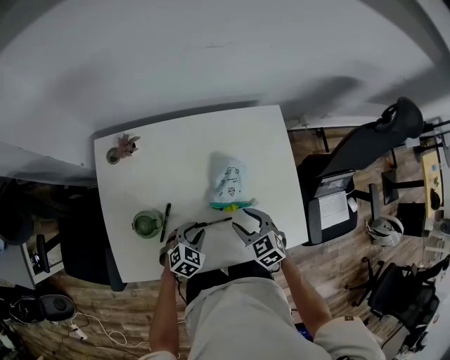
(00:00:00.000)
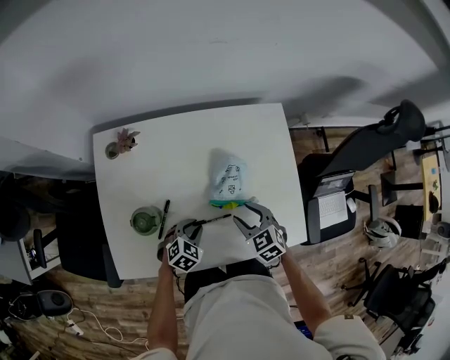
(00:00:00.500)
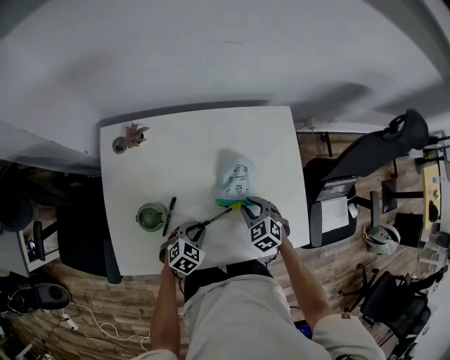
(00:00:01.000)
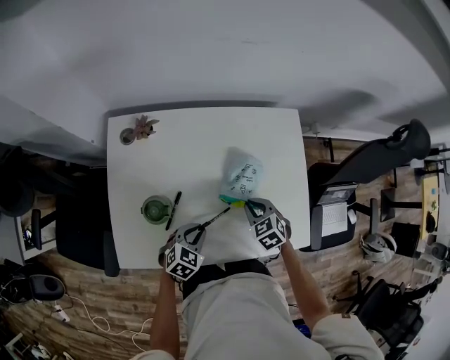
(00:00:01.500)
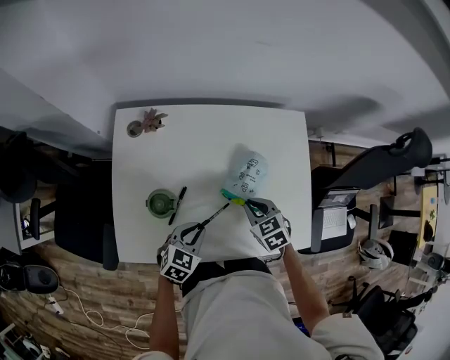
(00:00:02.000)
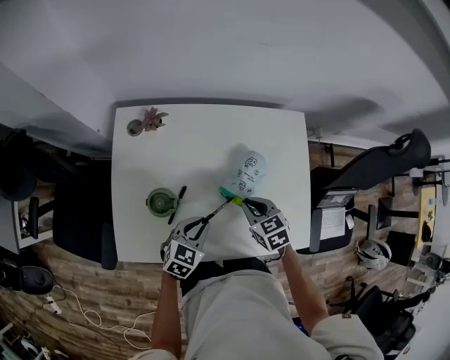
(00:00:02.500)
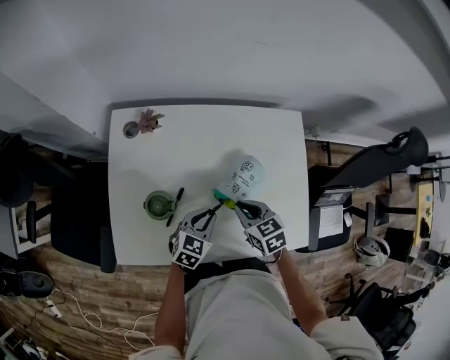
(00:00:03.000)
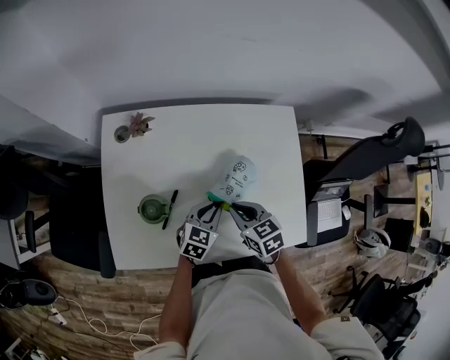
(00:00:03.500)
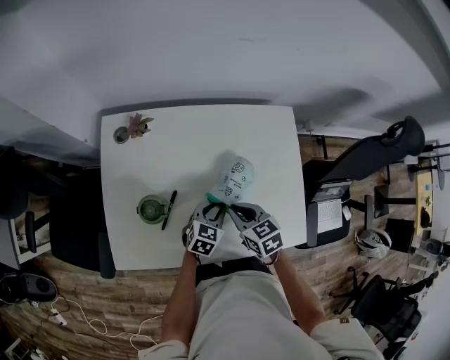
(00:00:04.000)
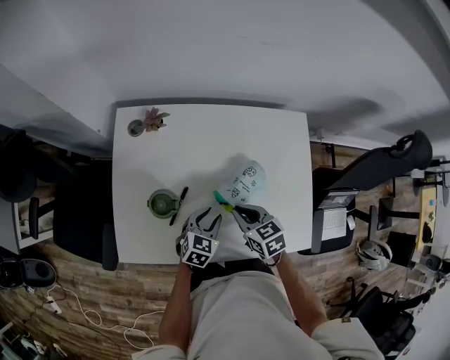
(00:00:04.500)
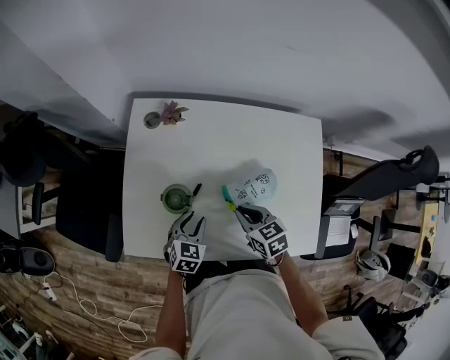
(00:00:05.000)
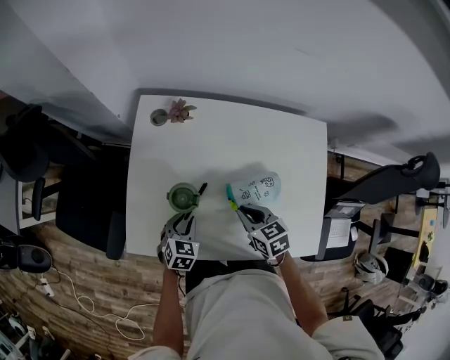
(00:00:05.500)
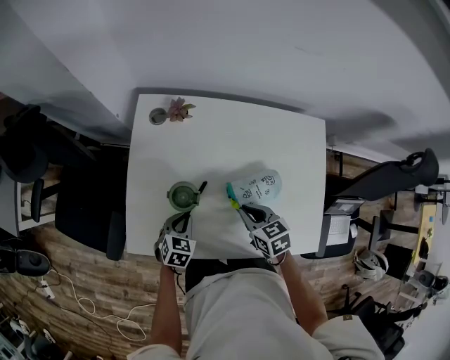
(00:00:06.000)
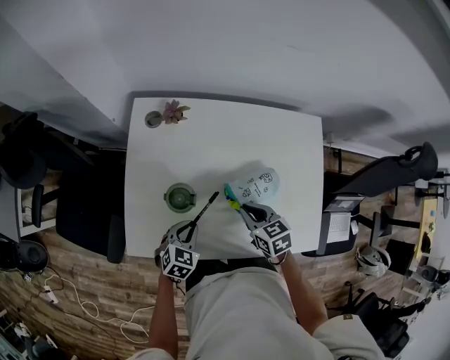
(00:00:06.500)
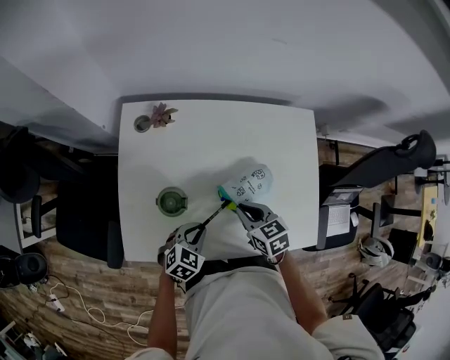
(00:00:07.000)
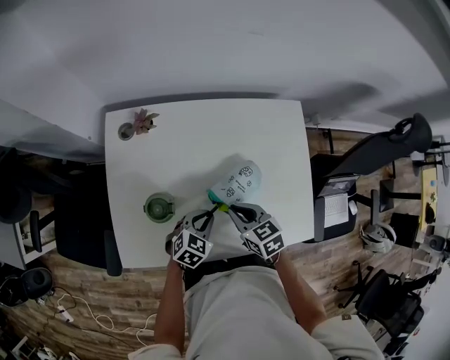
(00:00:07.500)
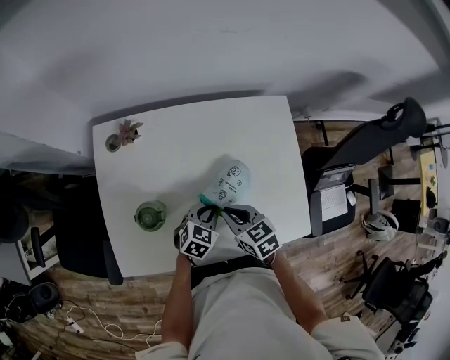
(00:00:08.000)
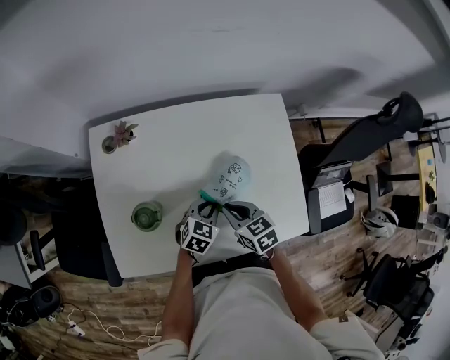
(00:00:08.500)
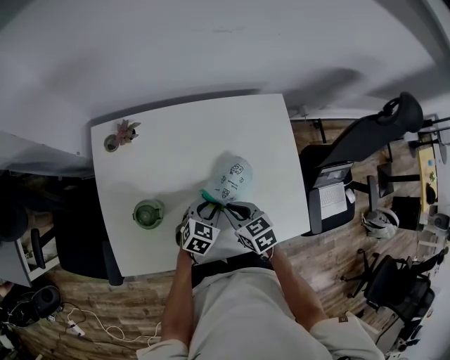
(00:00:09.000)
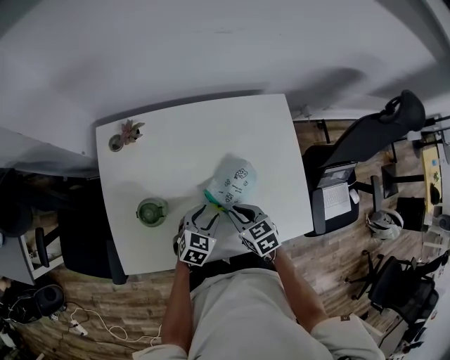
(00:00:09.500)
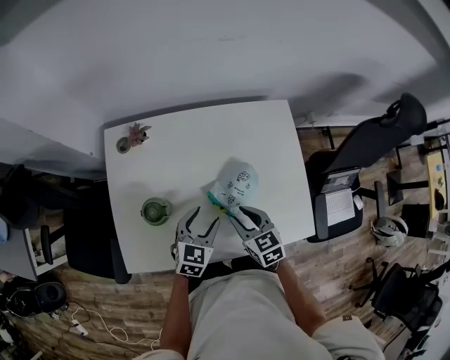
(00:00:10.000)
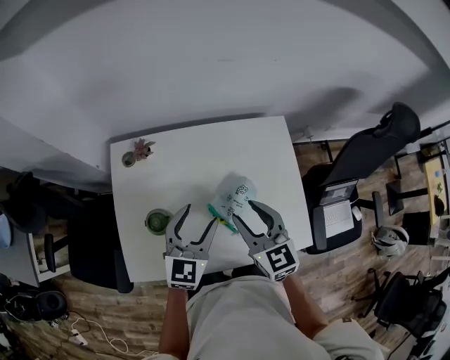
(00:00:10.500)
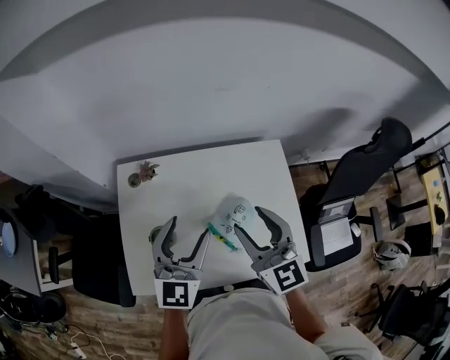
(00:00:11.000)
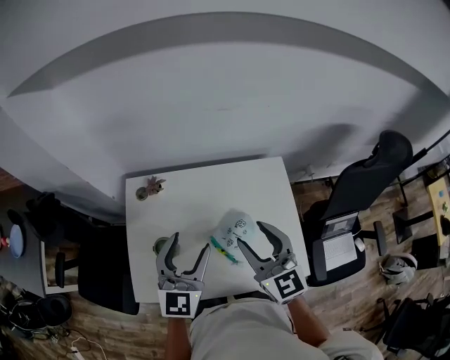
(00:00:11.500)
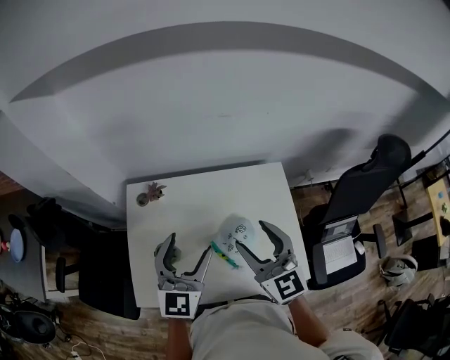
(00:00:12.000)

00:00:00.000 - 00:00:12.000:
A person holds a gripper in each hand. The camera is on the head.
00:00:00.000 - 00:00:02.000: The right gripper closes. Meanwhile the left gripper travels upward by about 5 cm.
00:00:02.000 - 00:00:04.000: The left gripper heads to the right and forward, covering some 10 cm.
00:00:04.000 - 00:00:06.000: The right gripper shifts some 5 cm to the left. The left gripper goes about 20 cm to the left, and swivels about 20 degrees.
00:00:06.000 - 00:00:08.000: The left gripper heads to the right, covering approximately 20 cm, and changes its angle by about 30 degrees.
00:00:08.000 - 00:00:10.000: The left gripper heads upward, covering some 5 cm, and opens its fingers.
00:00:10.000 - 00:00:12.000: The two grippers go about 30 cm upward. The right gripper tilts its fingers about 40 degrees upward, and opens its fingers, while the left gripper tips its fingers upward by some 30 degrees.

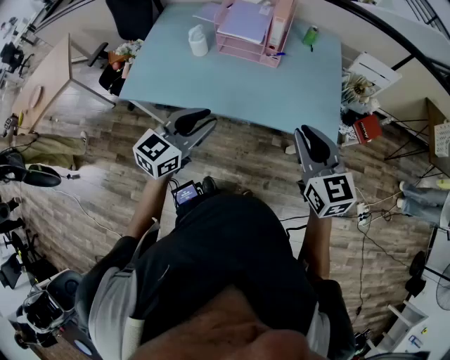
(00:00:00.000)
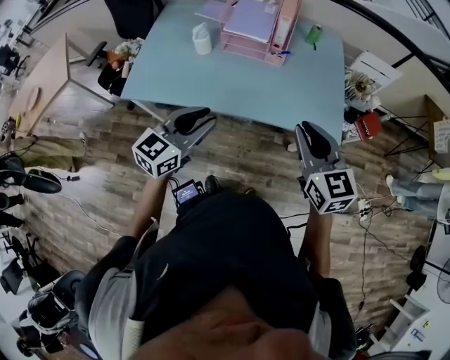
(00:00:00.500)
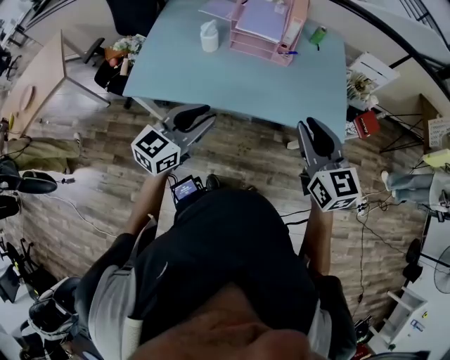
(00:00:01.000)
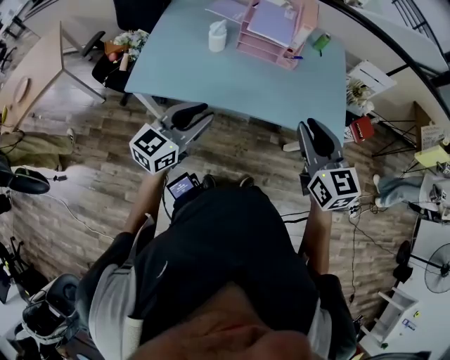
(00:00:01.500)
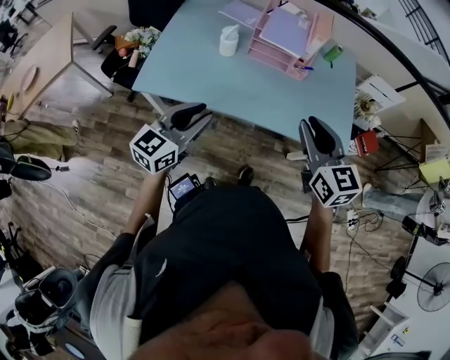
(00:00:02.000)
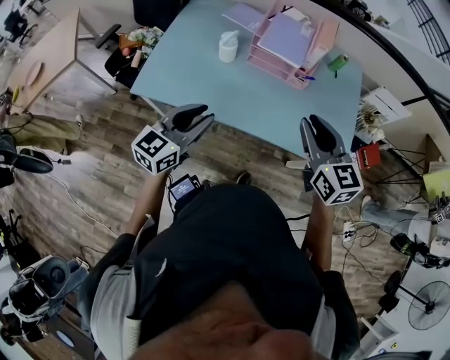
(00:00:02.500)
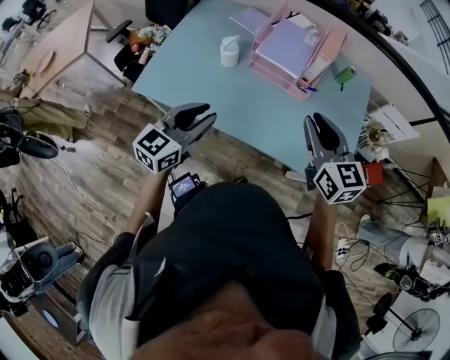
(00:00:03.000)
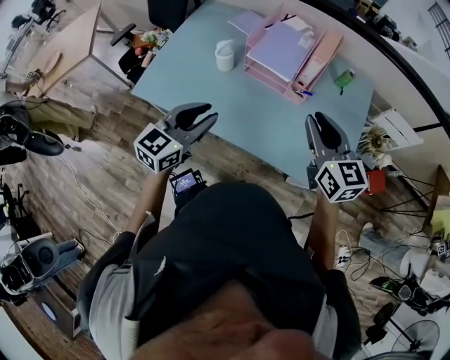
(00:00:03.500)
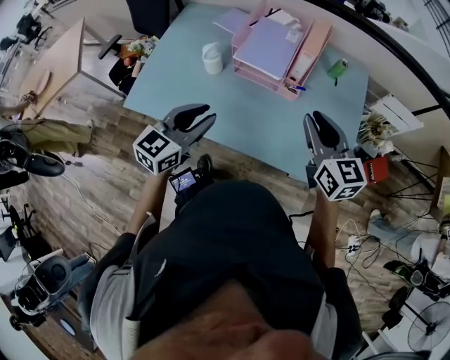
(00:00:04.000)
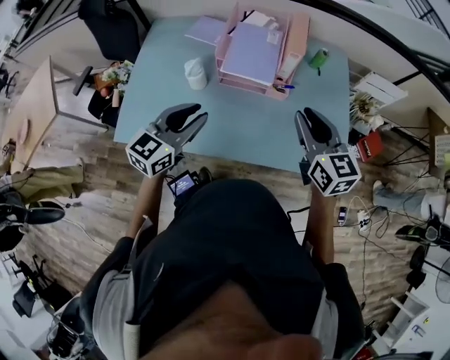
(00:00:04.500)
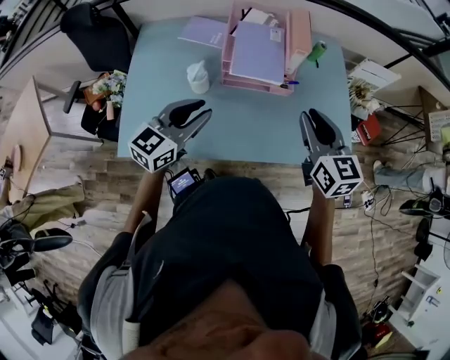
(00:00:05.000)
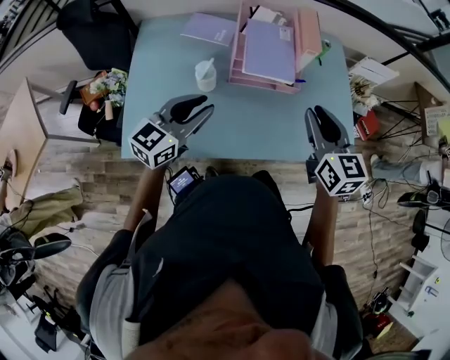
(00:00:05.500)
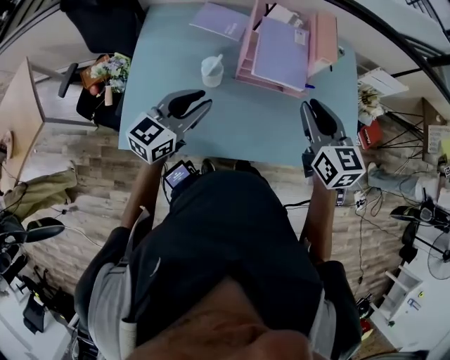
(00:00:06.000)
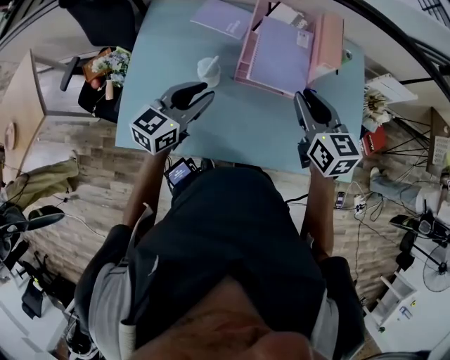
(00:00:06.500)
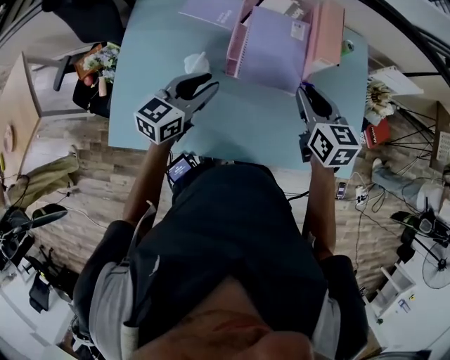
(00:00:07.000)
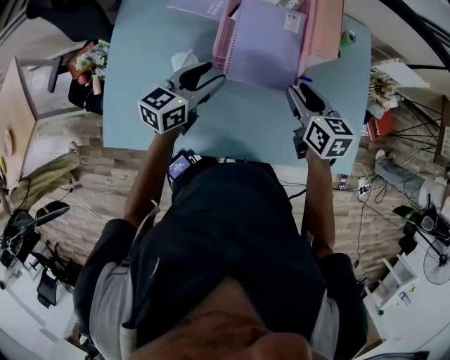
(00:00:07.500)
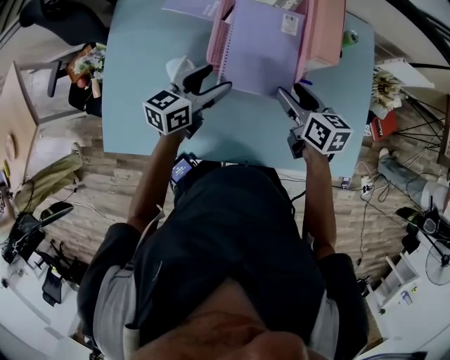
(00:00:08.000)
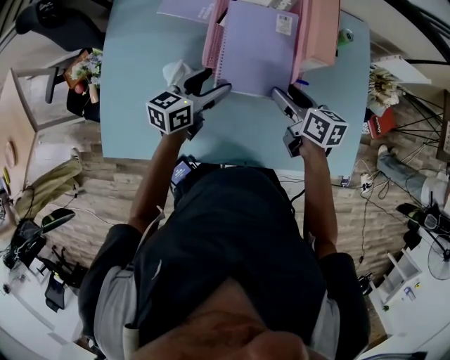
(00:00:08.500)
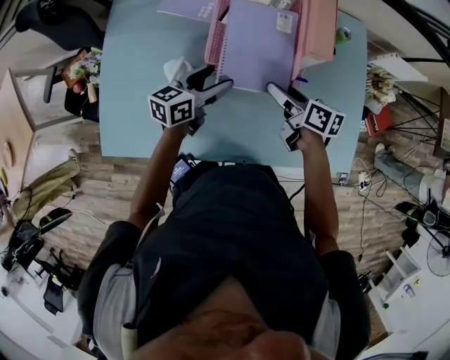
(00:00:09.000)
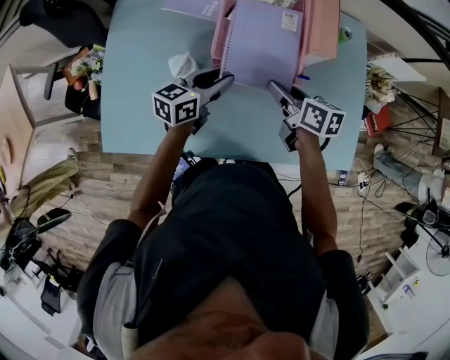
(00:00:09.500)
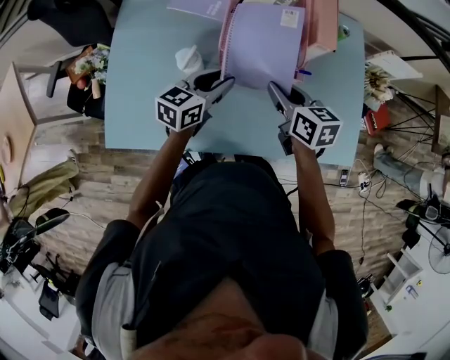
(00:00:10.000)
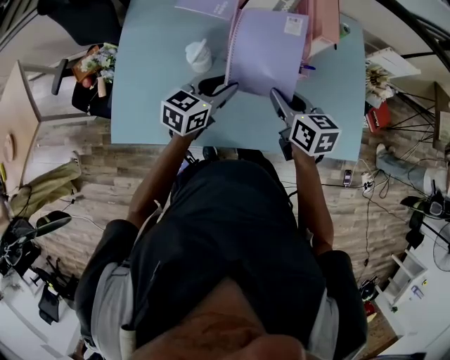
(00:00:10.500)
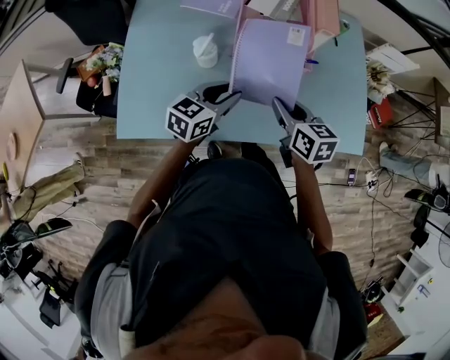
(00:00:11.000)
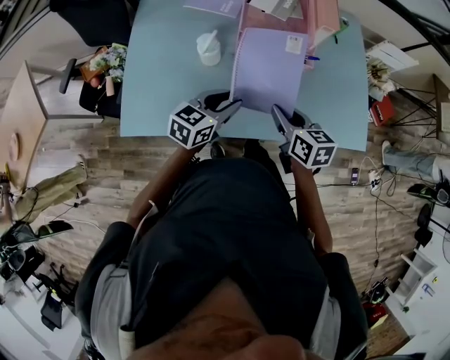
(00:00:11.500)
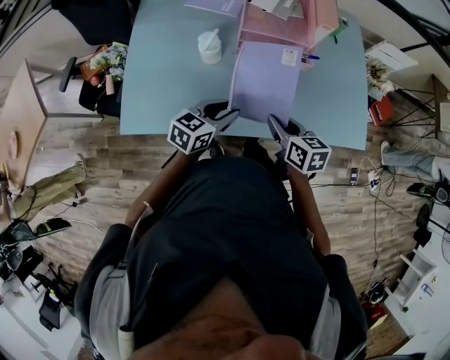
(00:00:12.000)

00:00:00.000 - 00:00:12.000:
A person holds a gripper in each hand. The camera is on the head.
00:00:00.000 - 00:00:02.000: Both grippers travel together to the left, approximately 15 cm.
00:00:02.000 - 00:00:04.000: Both grippers move forward and to the right, about 20 cm.
00:00:04.000 - 00:00:06.000: The right gripper is displaced to the left by approximately 15 cm. Meanwhile the left gripper travels to the left and forward by roughly 20 cm.
00:00:06.000 - 00:00:08.000: The right gripper travels downward and forward by roughly 25 cm, rotates approximately 30 degrees, and opens up. The left gripper heads forward, downward and to the right, covering roughly 25 cm, changes its angle by approximately 20 degrees, and opens its fingers.
00:00:08.000 - 00:00:10.000: The right gripper shifts some 10 cm to the left and backward, and closes its fingers; the left gripper closes its fingers.
00:00:10.000 - 00:00:12.000: The two grippers go some 20 cm backward.

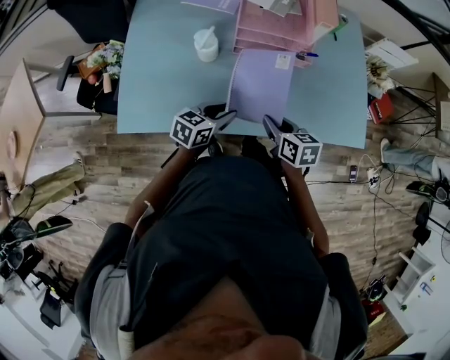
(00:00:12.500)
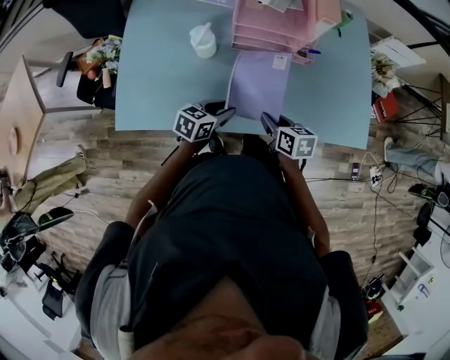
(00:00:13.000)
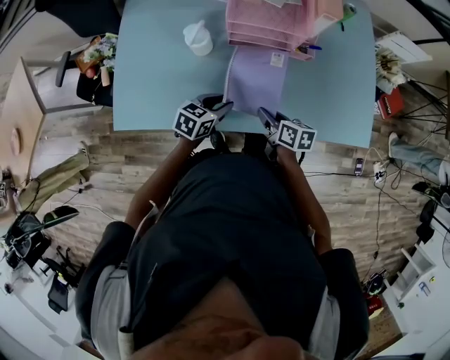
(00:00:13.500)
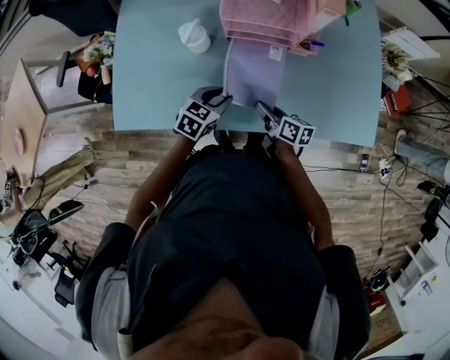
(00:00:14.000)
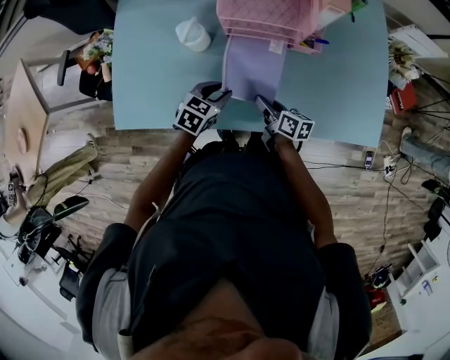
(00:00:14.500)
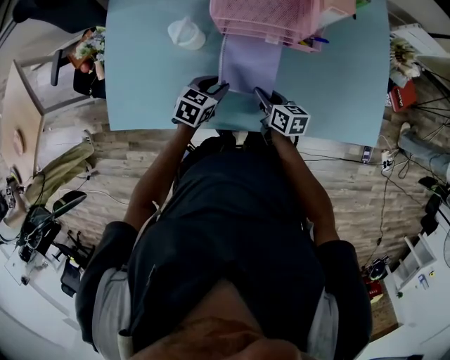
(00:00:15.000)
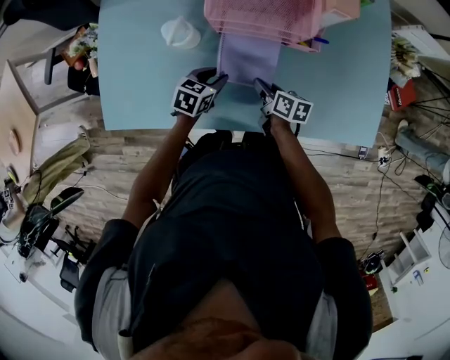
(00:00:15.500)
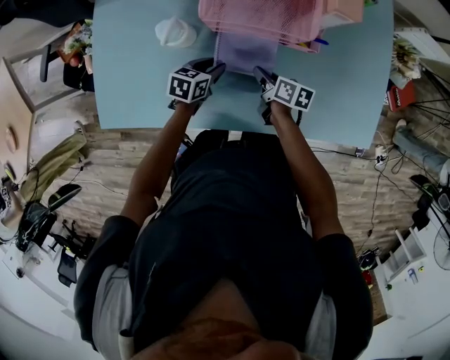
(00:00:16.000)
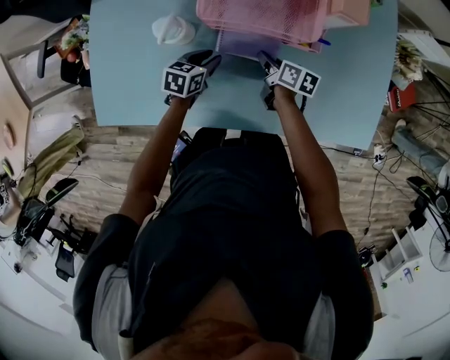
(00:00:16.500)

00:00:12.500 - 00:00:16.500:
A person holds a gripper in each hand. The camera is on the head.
00:00:12.500 - 00:00:14.500: The left gripper heads downward and forward, covering roughly 10 cm, and changes its angle by roughly 20 degrees. The right gripper shifts roughly 15 cm downward and forward, and rotates approximately 30 degrees.
00:00:14.500 - 00:00:16.500: The left gripper shifts approximately 15 cm forward and downward; the right gripper moves forward, roughly 15 cm.
